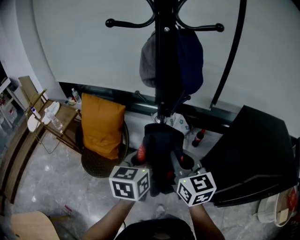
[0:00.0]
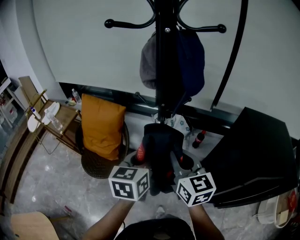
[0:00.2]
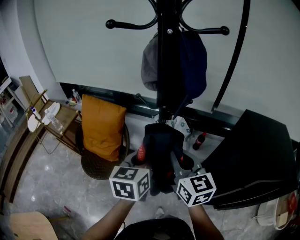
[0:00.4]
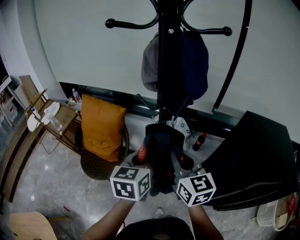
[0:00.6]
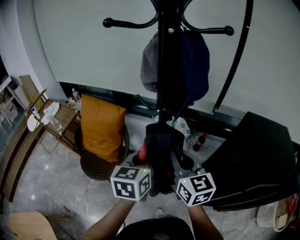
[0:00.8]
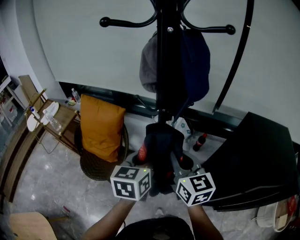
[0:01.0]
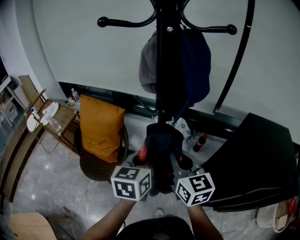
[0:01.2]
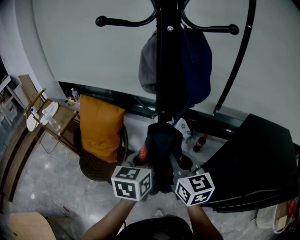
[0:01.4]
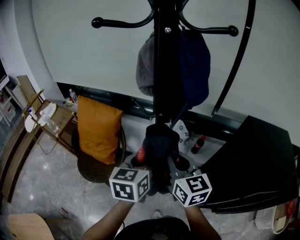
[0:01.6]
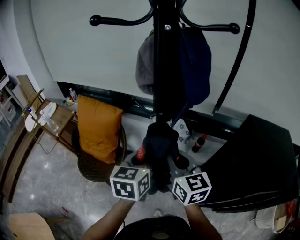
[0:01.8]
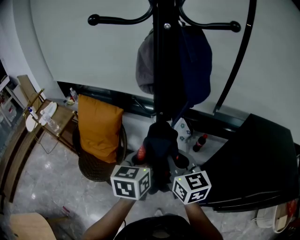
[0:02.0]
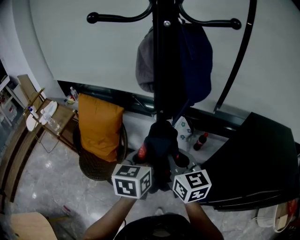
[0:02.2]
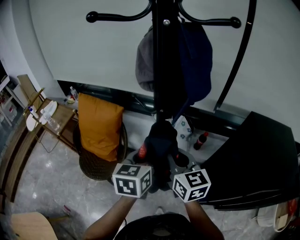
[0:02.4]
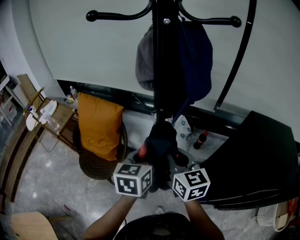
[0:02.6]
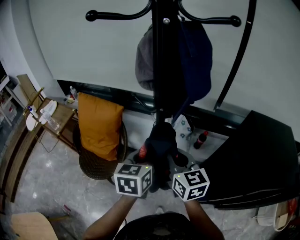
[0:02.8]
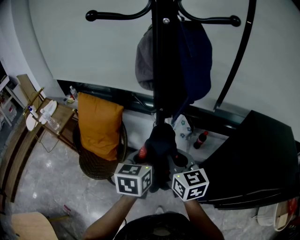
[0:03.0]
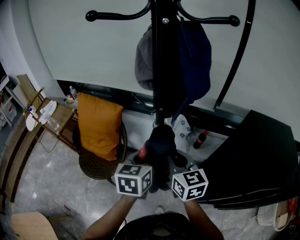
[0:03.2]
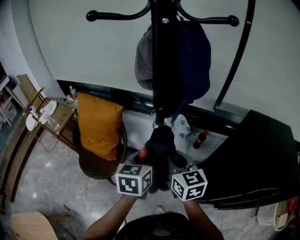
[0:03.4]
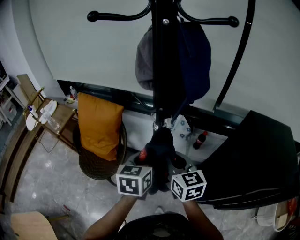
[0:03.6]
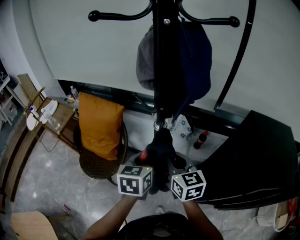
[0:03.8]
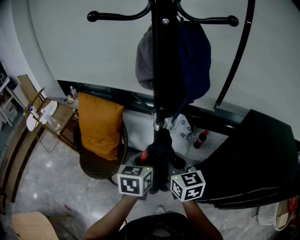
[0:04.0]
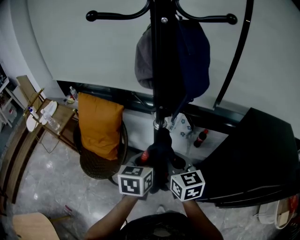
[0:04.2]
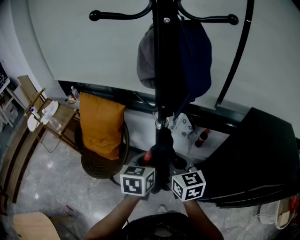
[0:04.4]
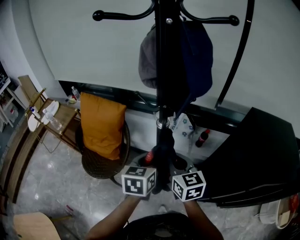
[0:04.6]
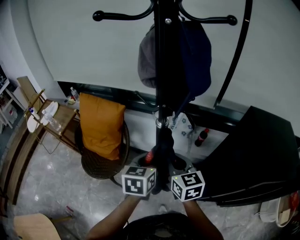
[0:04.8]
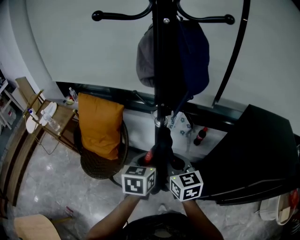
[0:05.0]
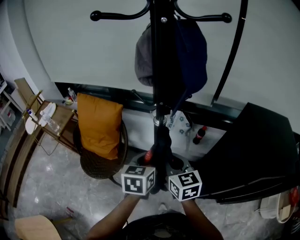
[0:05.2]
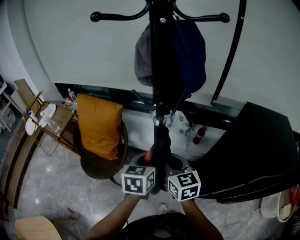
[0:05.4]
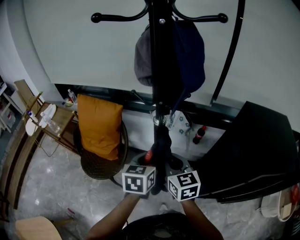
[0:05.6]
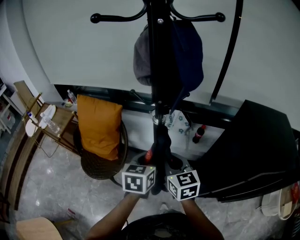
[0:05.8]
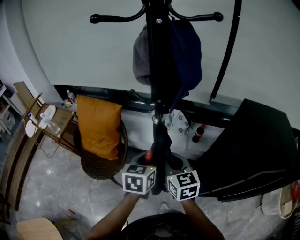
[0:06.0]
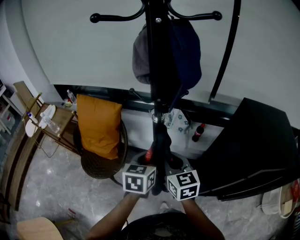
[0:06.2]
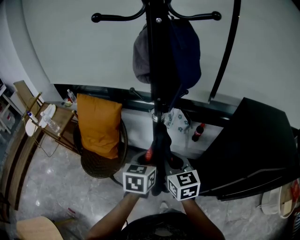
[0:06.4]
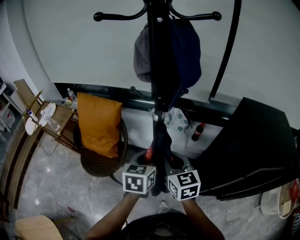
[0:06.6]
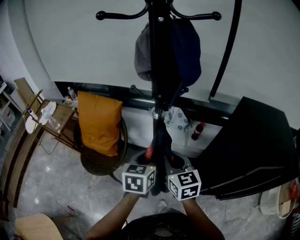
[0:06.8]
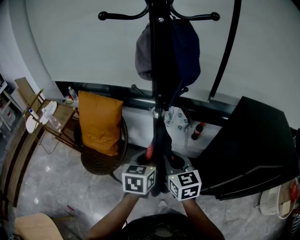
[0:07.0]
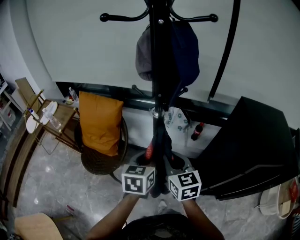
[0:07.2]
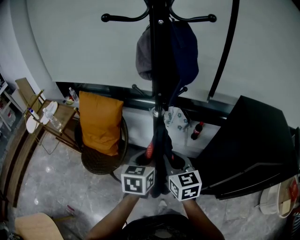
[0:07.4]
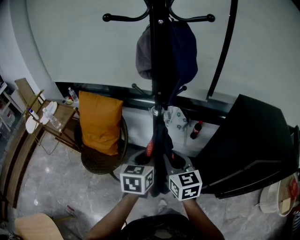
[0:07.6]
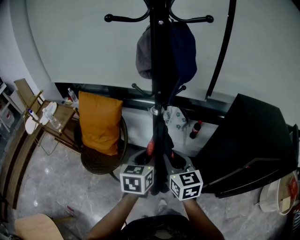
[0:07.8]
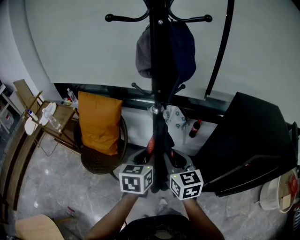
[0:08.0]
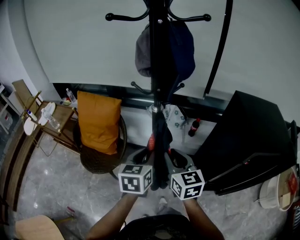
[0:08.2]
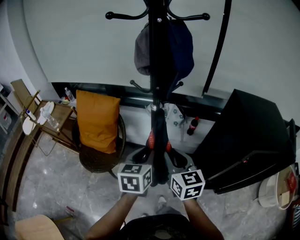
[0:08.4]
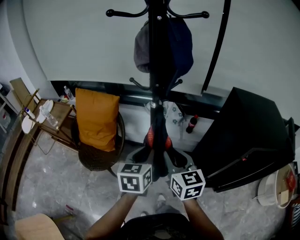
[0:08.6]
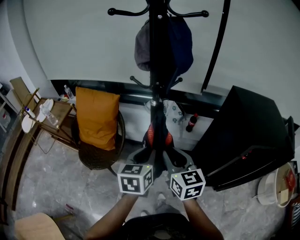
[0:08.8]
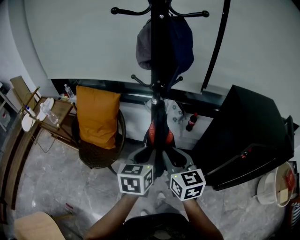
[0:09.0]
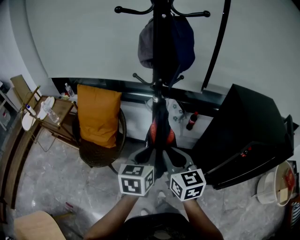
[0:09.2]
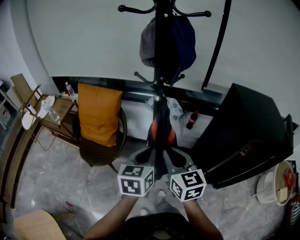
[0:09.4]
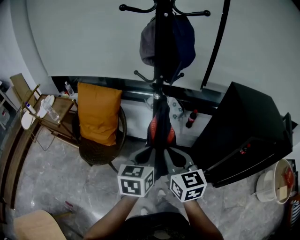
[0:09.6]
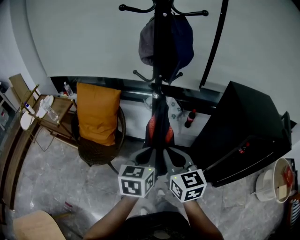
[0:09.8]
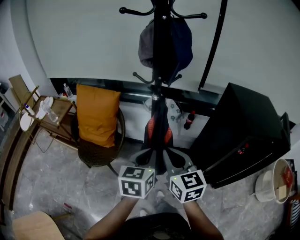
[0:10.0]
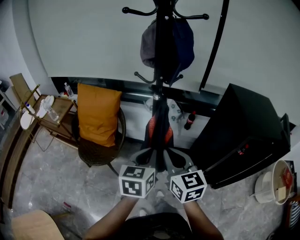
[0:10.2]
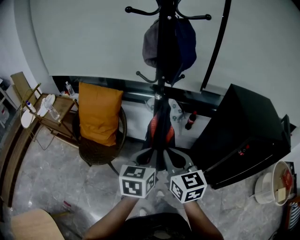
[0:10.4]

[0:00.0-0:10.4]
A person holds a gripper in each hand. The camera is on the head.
0.0 to 1.4 s: The grippers both shift forward by approximately 5 cm.
1.4 to 3.0 s: The grippers stay close to where they were, moving slightly.
3.0 to 6.0 s: The grippers stay close to where they were, moving slightly.
6.0 to 7.4 s: The grippers move only a little.
7.4 to 9.0 s: Both grippers move backward, approximately 5 cm.
9.0 to 10.4 s: The right gripper moves about 5 cm.

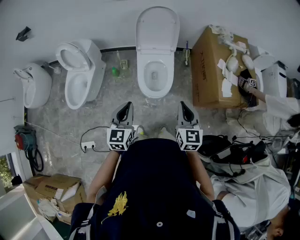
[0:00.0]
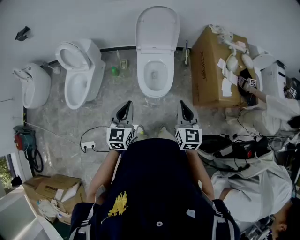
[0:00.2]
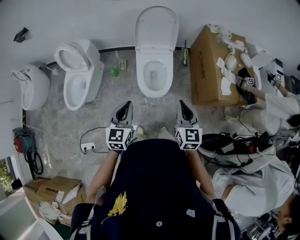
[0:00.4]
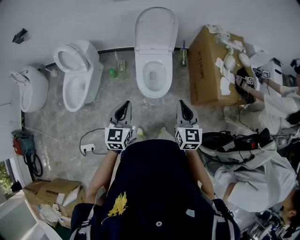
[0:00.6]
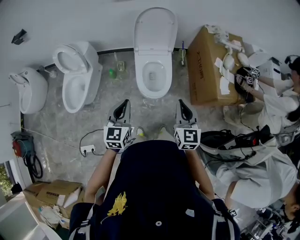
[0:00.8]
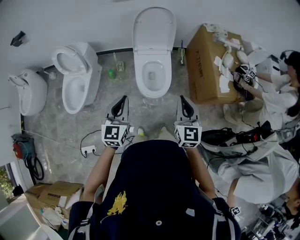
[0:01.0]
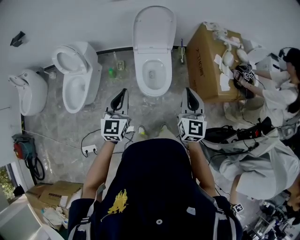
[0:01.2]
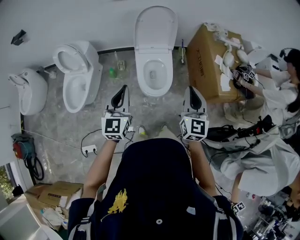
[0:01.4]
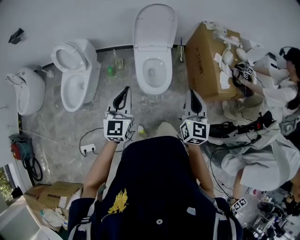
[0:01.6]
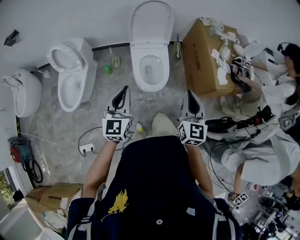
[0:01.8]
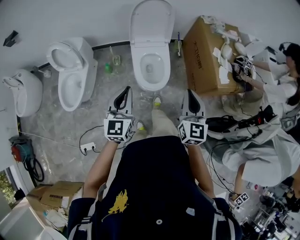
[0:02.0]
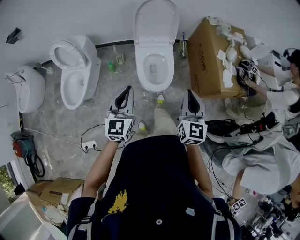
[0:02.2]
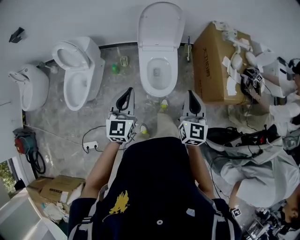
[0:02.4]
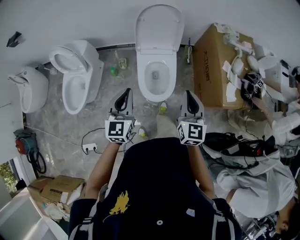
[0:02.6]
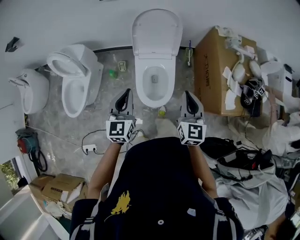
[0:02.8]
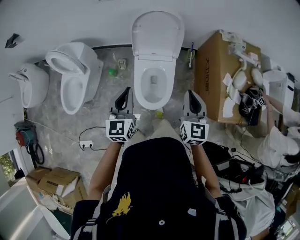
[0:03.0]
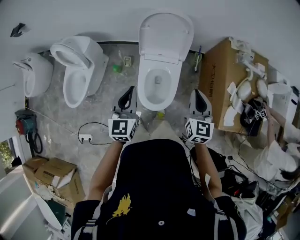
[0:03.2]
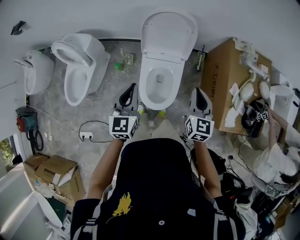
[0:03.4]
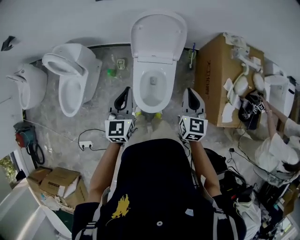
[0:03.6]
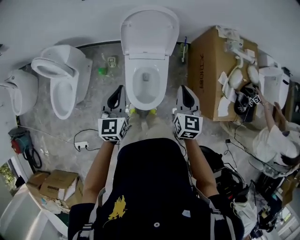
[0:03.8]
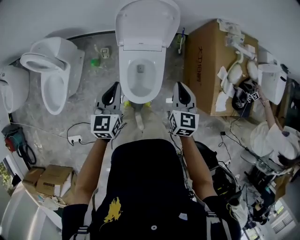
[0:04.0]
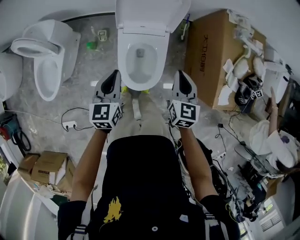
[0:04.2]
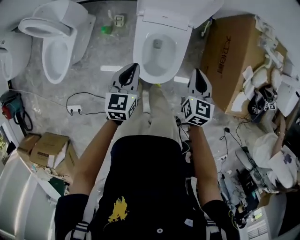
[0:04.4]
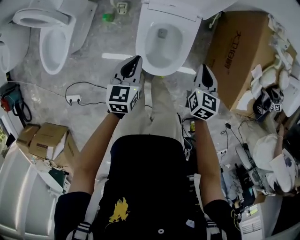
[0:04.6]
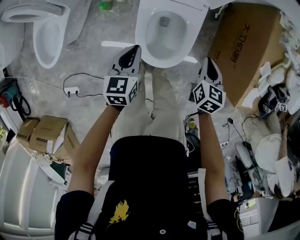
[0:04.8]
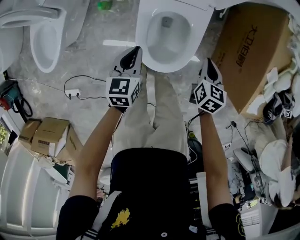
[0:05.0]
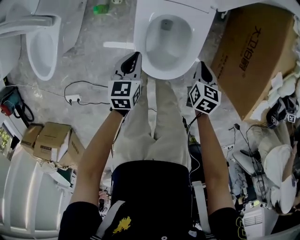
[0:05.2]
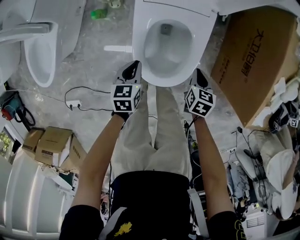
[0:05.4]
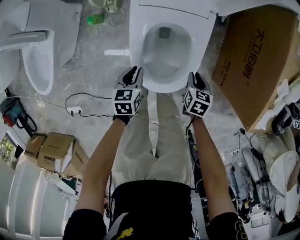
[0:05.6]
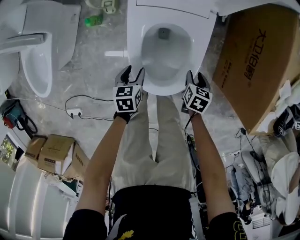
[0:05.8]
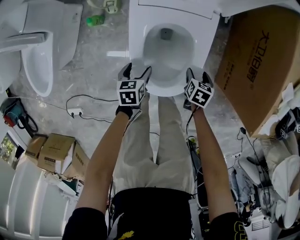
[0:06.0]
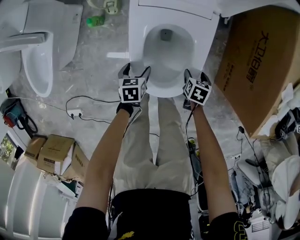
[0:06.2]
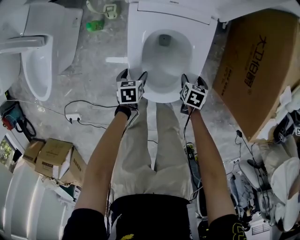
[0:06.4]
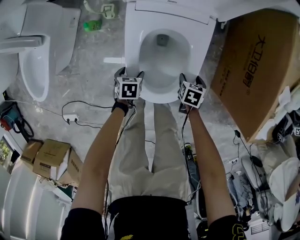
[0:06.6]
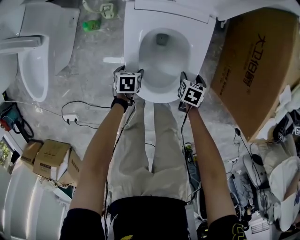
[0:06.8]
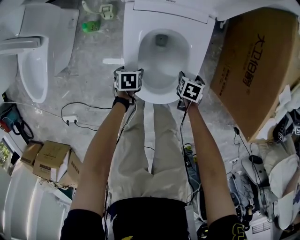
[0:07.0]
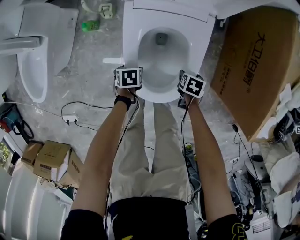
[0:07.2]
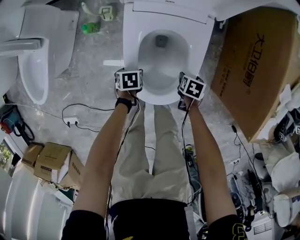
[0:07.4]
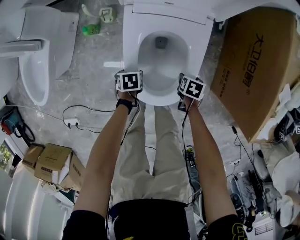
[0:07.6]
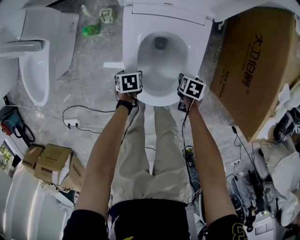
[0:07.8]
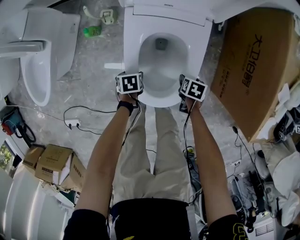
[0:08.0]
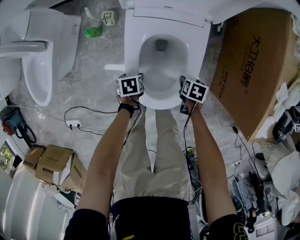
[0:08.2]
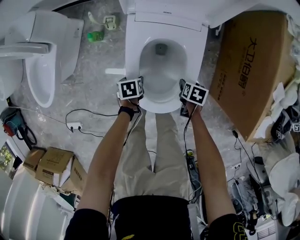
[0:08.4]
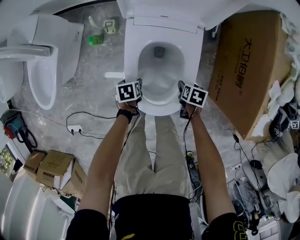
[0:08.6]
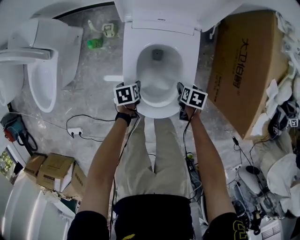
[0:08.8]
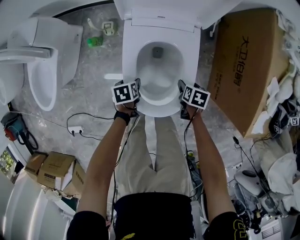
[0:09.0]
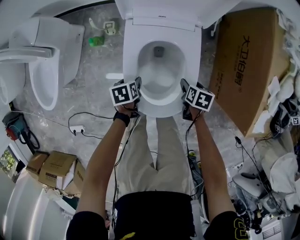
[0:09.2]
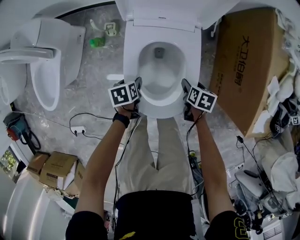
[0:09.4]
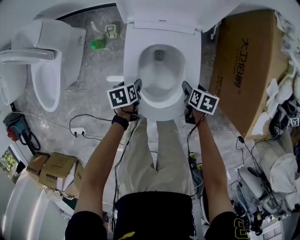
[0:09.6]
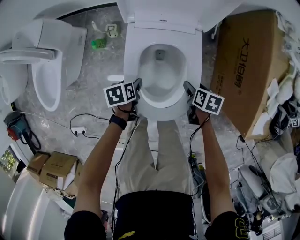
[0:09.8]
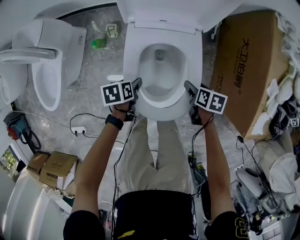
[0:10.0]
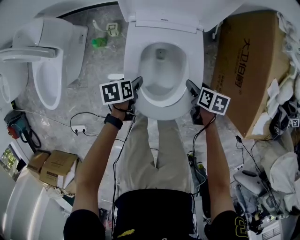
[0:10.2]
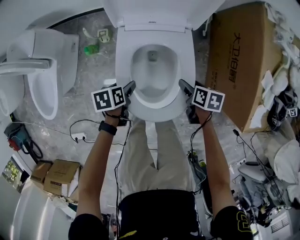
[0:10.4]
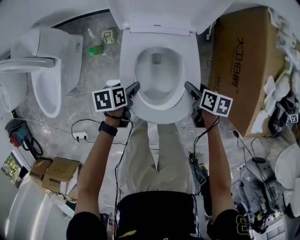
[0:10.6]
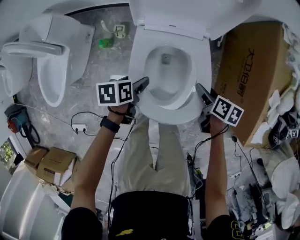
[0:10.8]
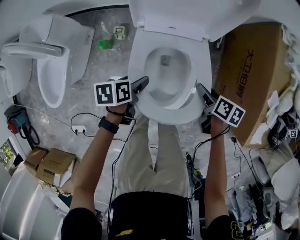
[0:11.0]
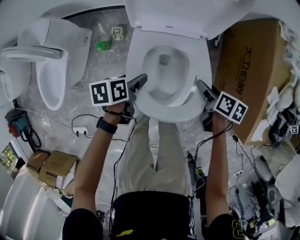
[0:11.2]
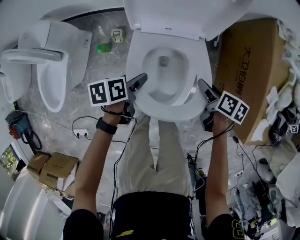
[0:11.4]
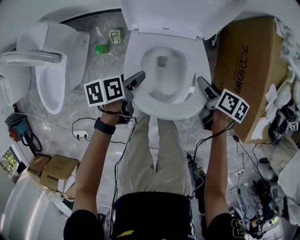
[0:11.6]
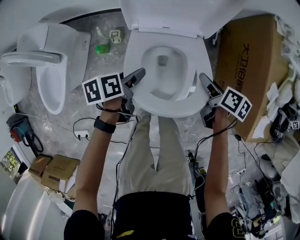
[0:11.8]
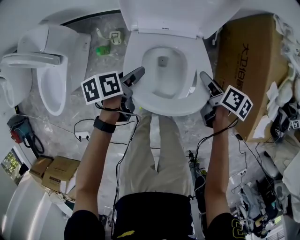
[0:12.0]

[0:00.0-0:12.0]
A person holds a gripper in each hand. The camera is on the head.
0.0 to 1.6 s: The left gripper is displaced to the left and upward by roughly 10 cm. Meanwhile the right gripper is displaced upward by approximately 5 cm.
1.6 to 3.0 s: The grippers both shift forward by about 25 cm.
3.0 to 4.4 s: The left gripper goes approximately 20 cm downward, and rotates about 20 degrees; the right gripper moves downward and forward, roughly 20 cm.
4.4 to 6.0 s: The grippers both shift downward by some 40 cm. The right gripper tilts its fingers approximately 40 degrees downward, and opens its fingers. The left gripper swivels approximately 30 degrees, and opens its fingers.
6.0 to 7.6 s: The left gripper shifts roughly 10 cm downward, and turns by roughly 20 degrees.
7.6 to 9.0 s: The two grippers go roughly 10 cm upward.
9.0 to 10.4 s: The grippers both shift upward by roughly 10 cm.
10.4 to 12.0 s: The two grippers go about 10 cm upward and forward. The right gripper changes its angle by about 20 degrees.

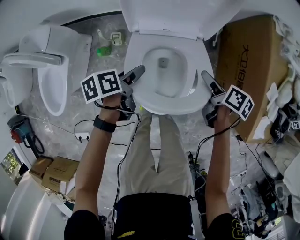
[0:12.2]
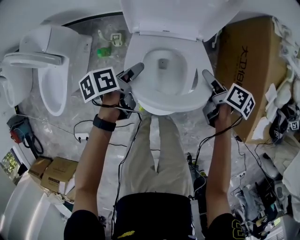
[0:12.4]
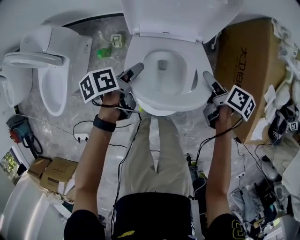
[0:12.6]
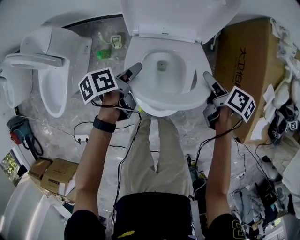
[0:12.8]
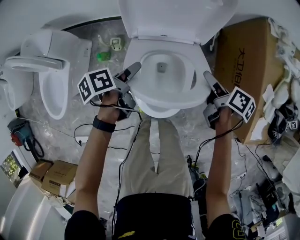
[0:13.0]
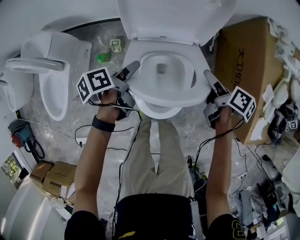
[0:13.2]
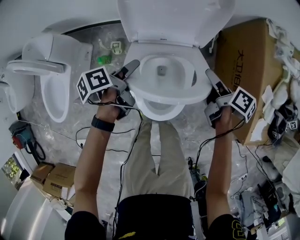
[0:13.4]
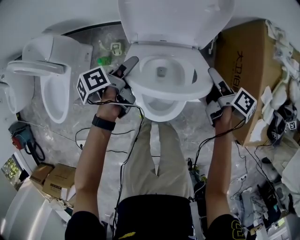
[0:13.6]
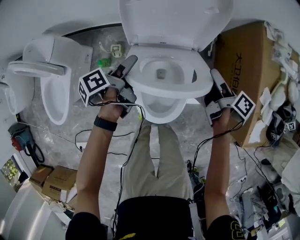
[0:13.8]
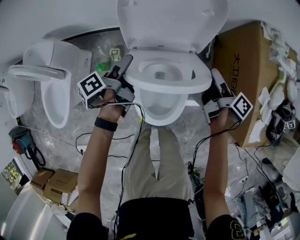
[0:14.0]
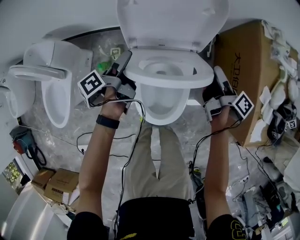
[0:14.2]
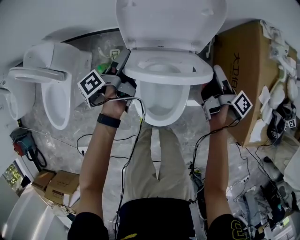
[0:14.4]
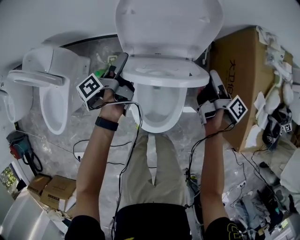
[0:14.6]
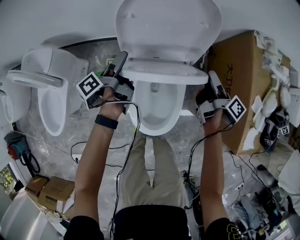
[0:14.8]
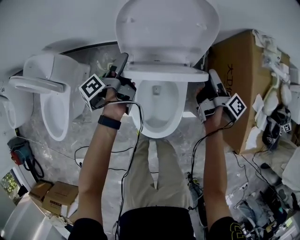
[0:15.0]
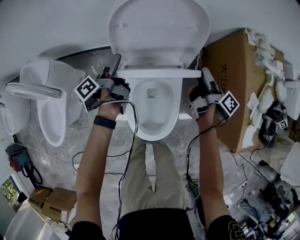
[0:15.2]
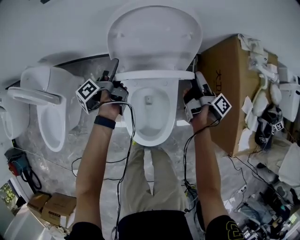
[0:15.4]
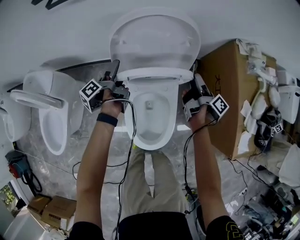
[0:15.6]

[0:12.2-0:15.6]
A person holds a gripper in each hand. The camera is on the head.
12.2 to 13.8 s: The left gripper is displaced forward by some 5 cm, and turns by some 30 degrees. The right gripper goes some 10 cm upward and forward, and changes its angle by some 30 degrees.
13.8 to 15.6 s: Both grippers travel together forward, roughly 10 cm. The right gripper rotates roughly 20 degrees; the left gripper rotates about 20 degrees.
